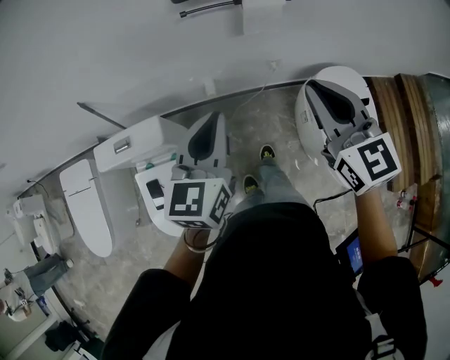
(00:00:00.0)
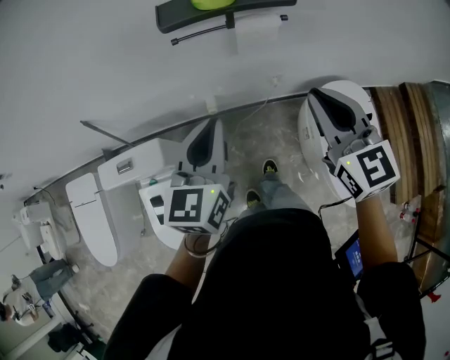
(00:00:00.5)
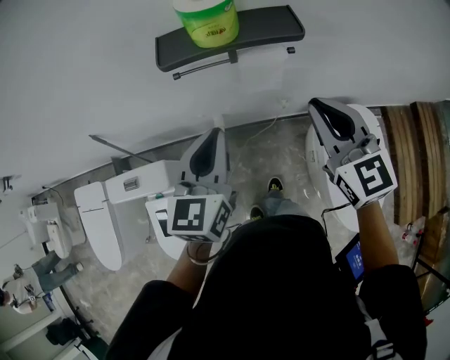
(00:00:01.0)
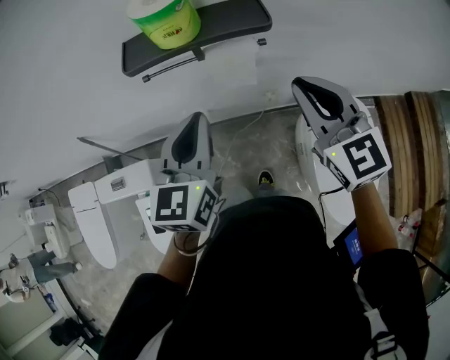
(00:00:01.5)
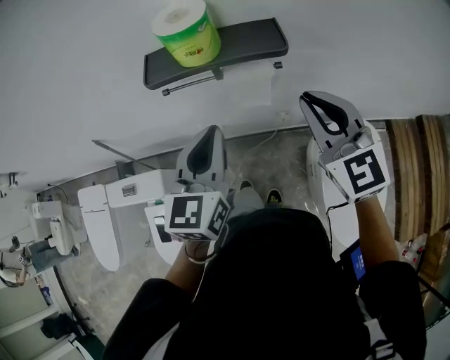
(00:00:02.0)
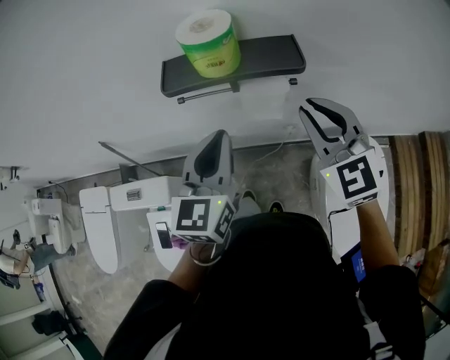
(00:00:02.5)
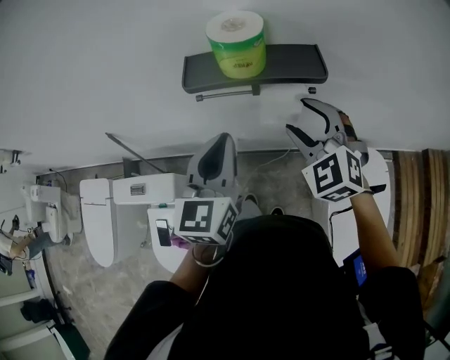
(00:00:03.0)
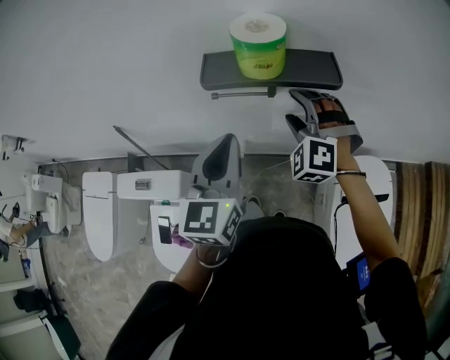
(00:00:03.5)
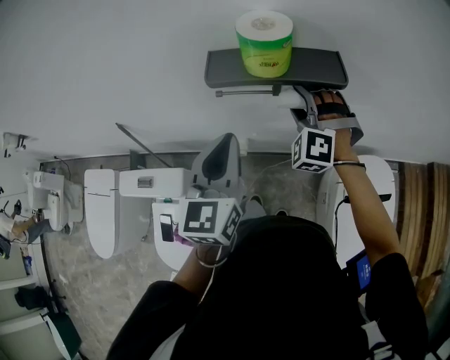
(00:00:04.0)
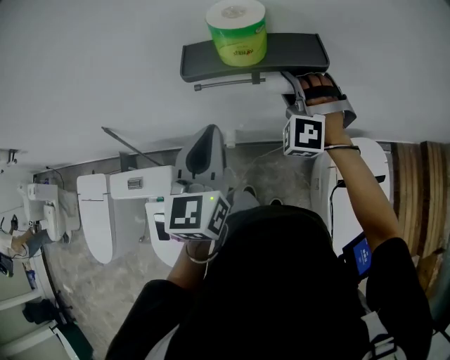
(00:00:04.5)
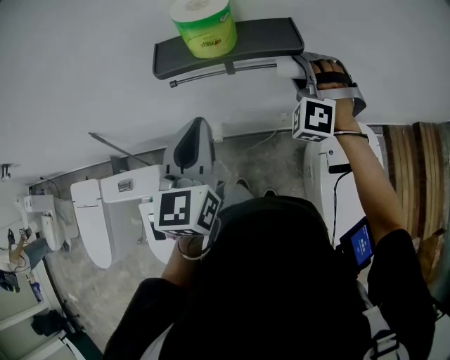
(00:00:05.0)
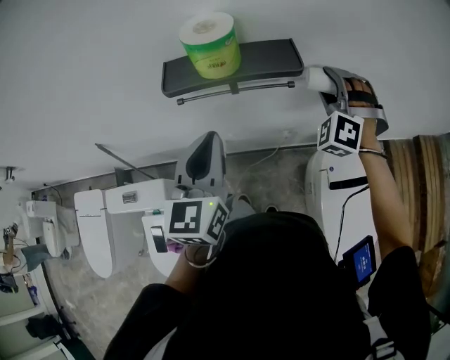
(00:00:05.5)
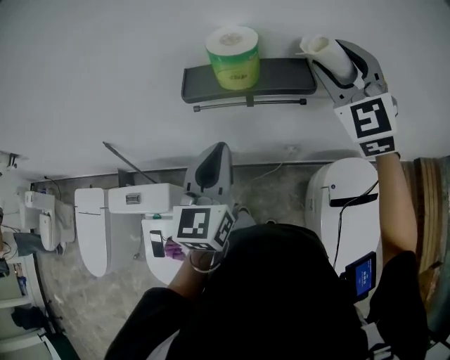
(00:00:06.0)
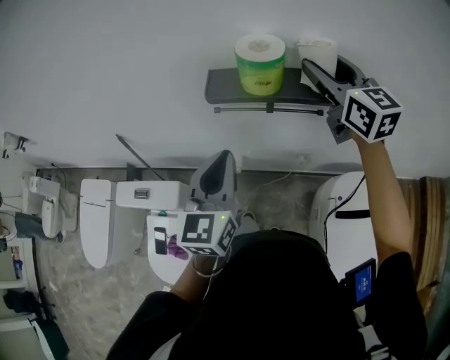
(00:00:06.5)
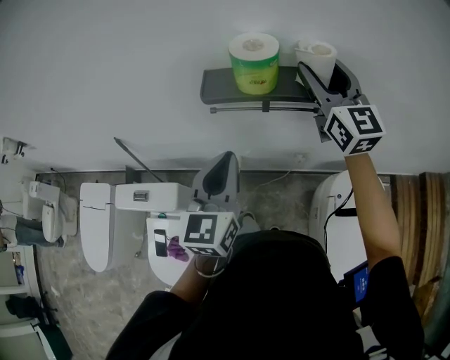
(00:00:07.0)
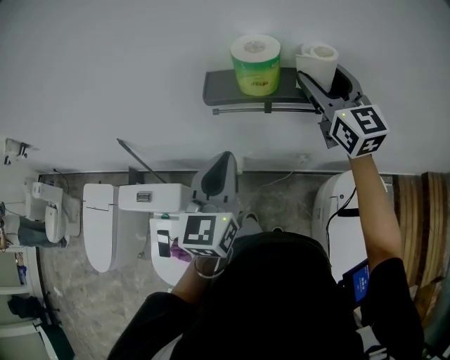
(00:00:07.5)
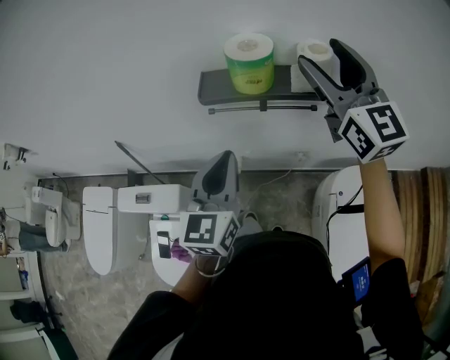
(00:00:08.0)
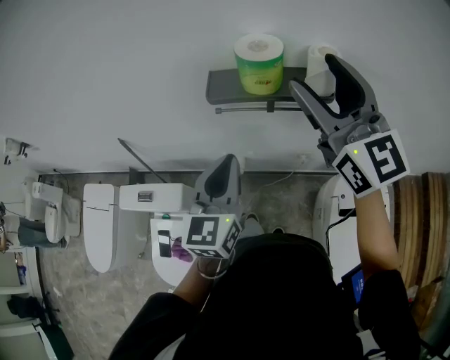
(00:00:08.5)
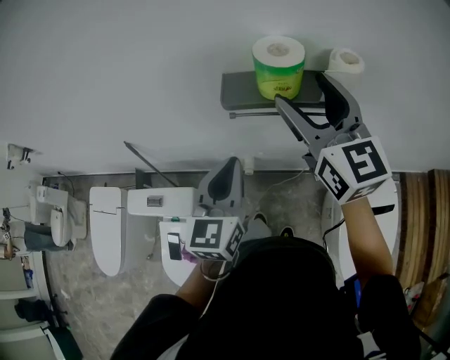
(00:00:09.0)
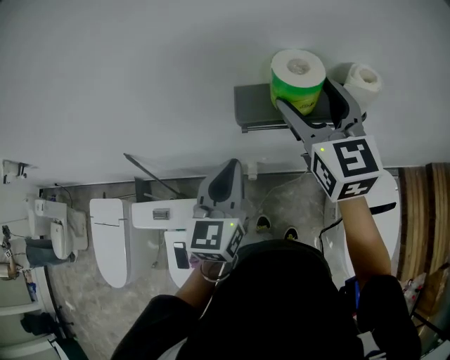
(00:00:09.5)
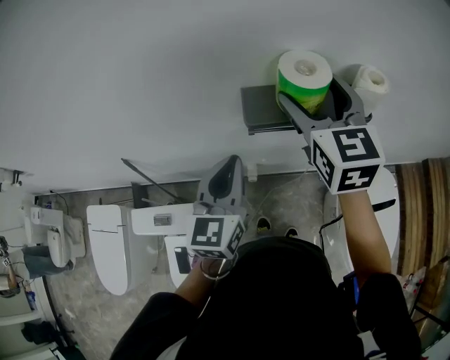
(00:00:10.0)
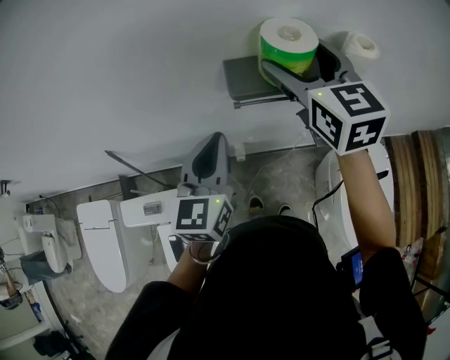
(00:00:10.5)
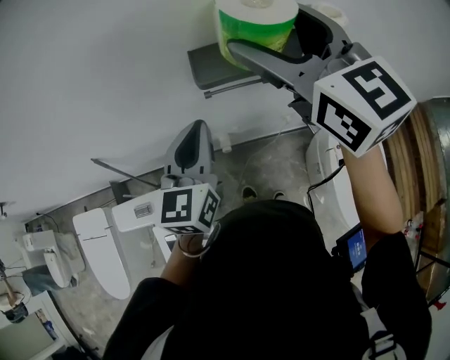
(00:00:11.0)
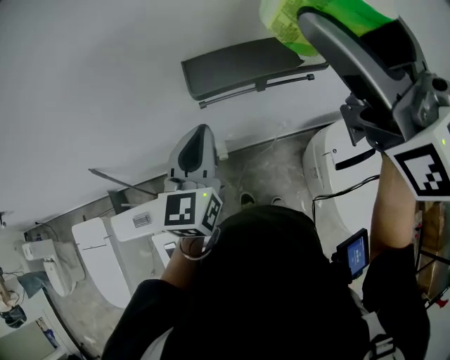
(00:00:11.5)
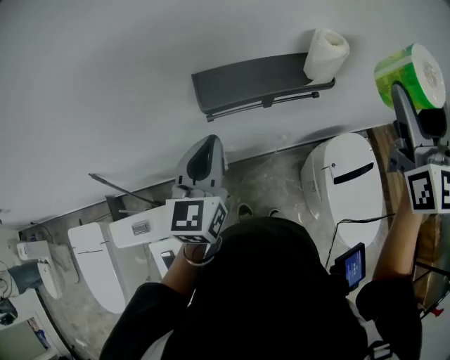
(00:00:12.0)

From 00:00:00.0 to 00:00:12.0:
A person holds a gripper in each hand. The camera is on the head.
From 00:00:00.0 to 00:00:02.0: Both grippers move forward and to the right, approximately 20 cm.
From 00:00:02.0 to 00:00:04.0: The right gripper shifts approximately 20 cm forward, to the left and downward, rolls counterclockwise, seen from behind, by approximately 60 degrees, and opens its fingers. The left gripper goes approximately 5 cm to the left.
From 00:00:04.0 to 00:00:06.0: The right gripper is displaced upward and to the right by approximately 20 cm, and rotates roughly 40 degrees.
From 00:00:06.0 to 00:00:08.0: The right gripper ends up roughly 5 cm from where it was, and swivels some 40 degrees.
From 00:00:08.0 to 00:00:10.0: The left gripper travels to the left and forward by roughly 10 cm; the right gripper heads to the left and downward, covering some 15 cm, and swivels approximately 30 degrees.
From 00:00:10.0 to 00:00:12.0: The right gripper goes about 25 cm to the right, backward and upward, and changes its angle by about 30 degrees.

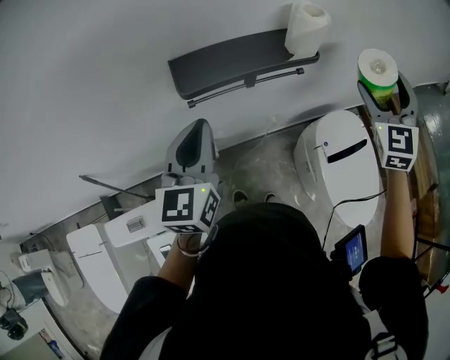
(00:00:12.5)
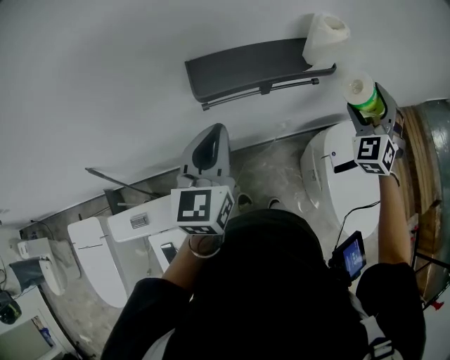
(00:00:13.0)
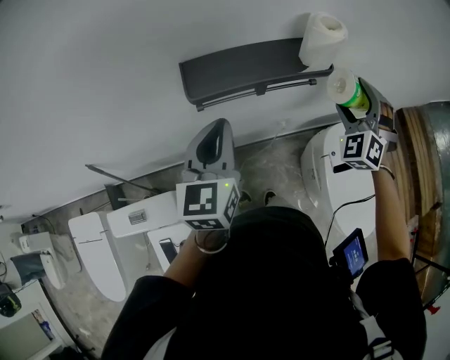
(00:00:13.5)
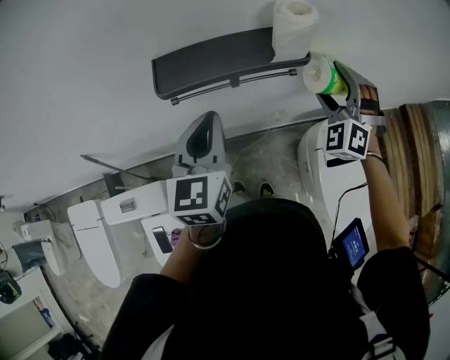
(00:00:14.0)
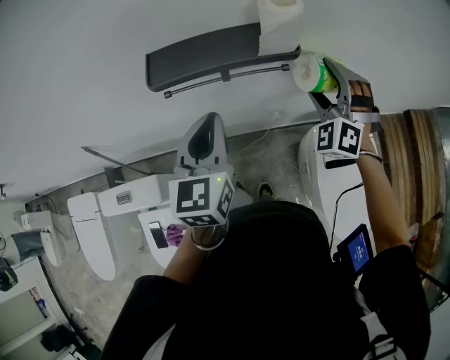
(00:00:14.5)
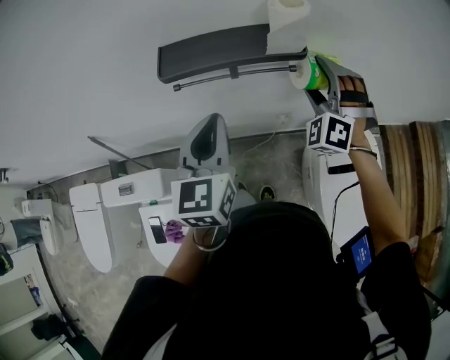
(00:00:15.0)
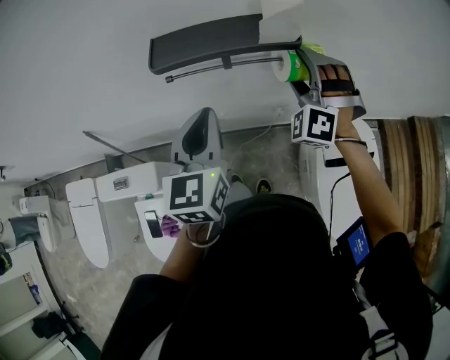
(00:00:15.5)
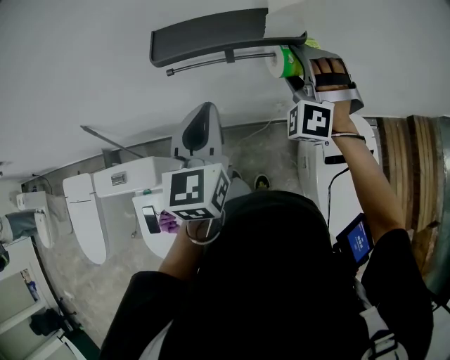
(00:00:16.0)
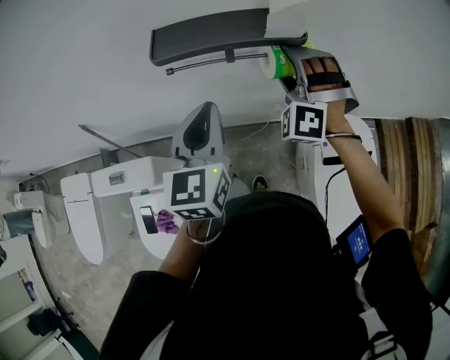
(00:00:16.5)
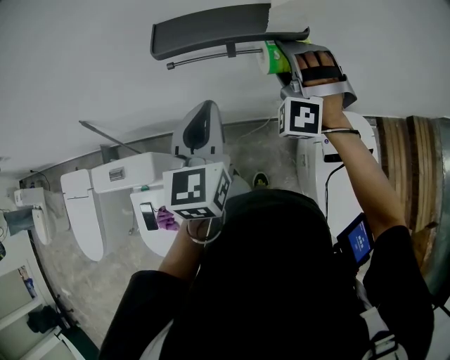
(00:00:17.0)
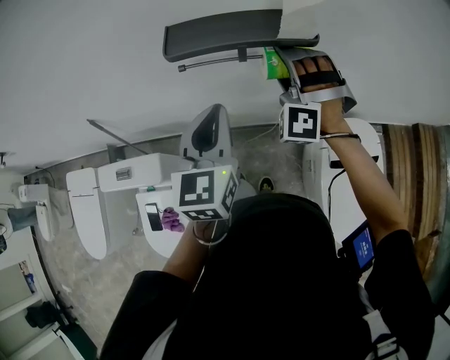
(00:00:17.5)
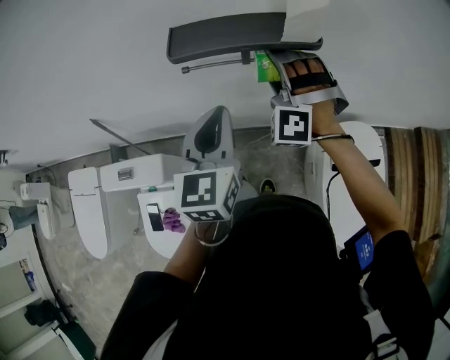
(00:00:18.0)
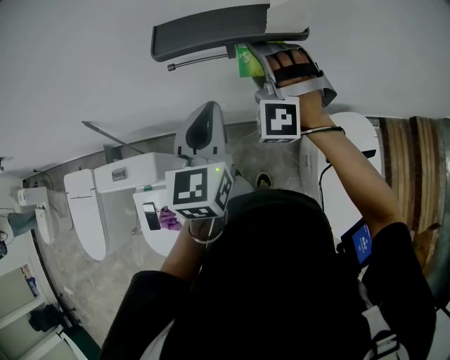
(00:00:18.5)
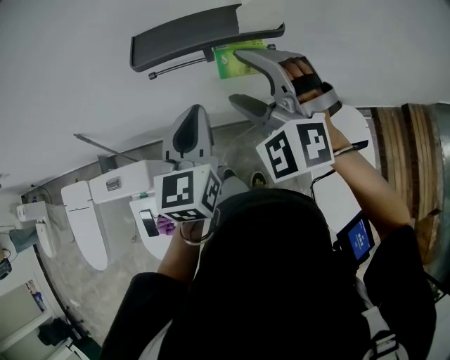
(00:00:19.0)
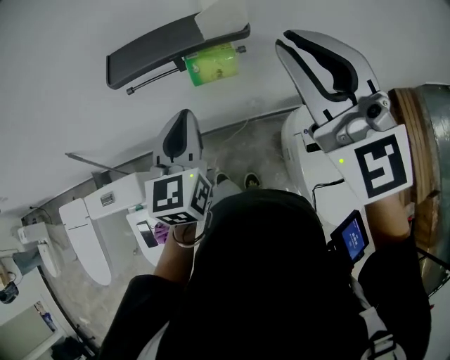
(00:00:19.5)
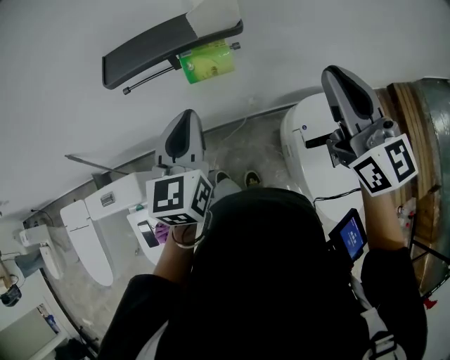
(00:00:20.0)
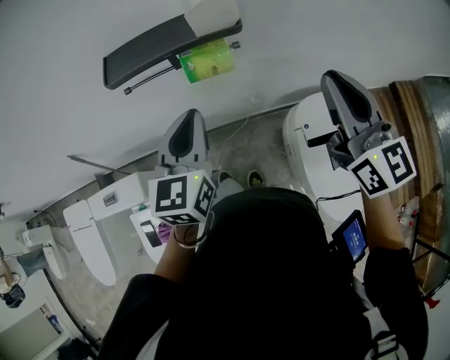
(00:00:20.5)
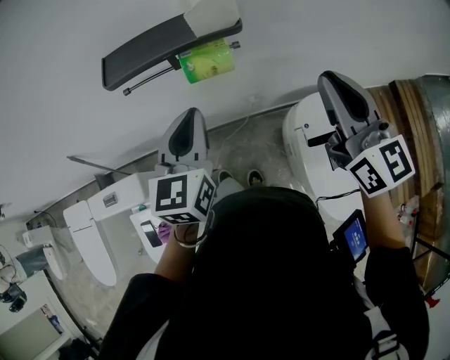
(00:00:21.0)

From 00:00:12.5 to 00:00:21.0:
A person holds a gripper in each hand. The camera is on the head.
From 00:00:12.5 to 00:00:14.5: The right gripper is displaced downward and to the left by roughly 15 cm, and changes its angle by about 40 degrees. Meanwhile the left gripper goes approximately 10 cm to the right.
From 00:00:14.5 to 00:00:16.5: The right gripper is displaced to the left by some 10 cm.
From 00:00:16.5 to 00:00:19.0: The right gripper is displaced backward, upward and to the left by some 15 cm, and rotates roughly 30 degrees.
From 00:00:19.0 to 00:00:21.0: The right gripper goes approximately 20 cm to the right, rolls clockwise, seen from behind, by some 60 degrees, and closes up, while the left gripper shifts about 5 cm to the right.

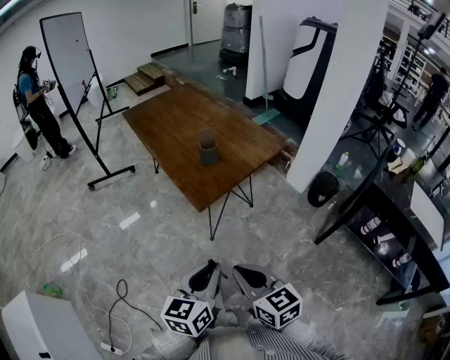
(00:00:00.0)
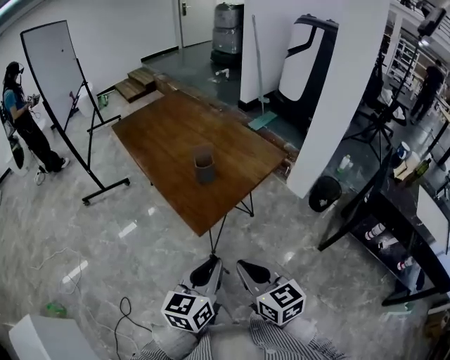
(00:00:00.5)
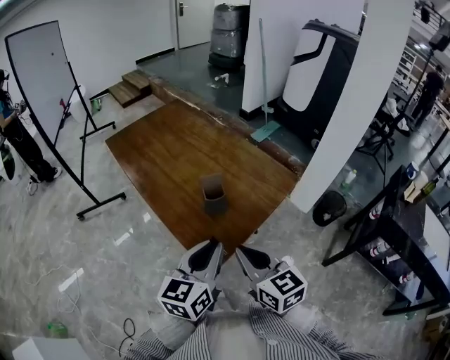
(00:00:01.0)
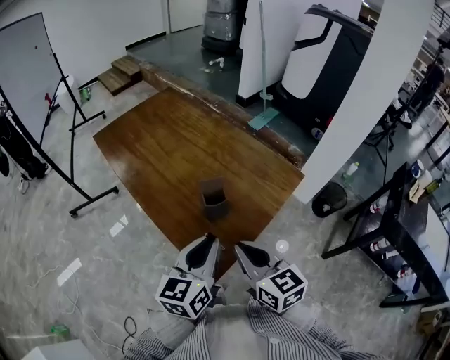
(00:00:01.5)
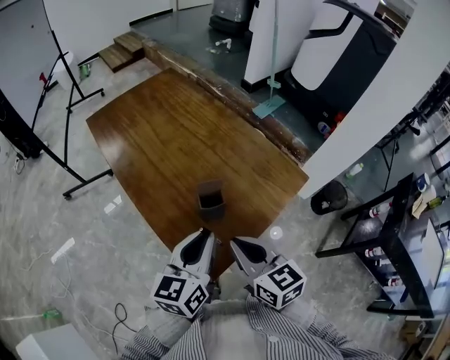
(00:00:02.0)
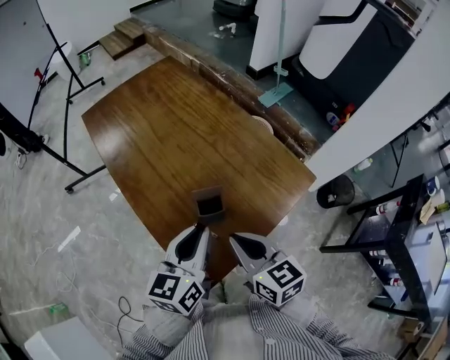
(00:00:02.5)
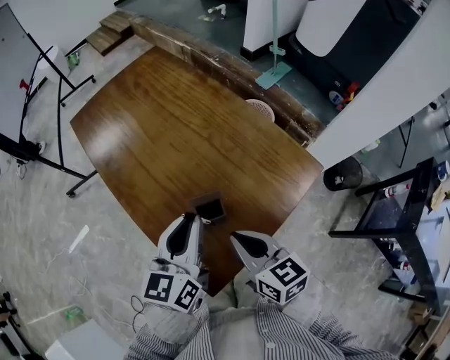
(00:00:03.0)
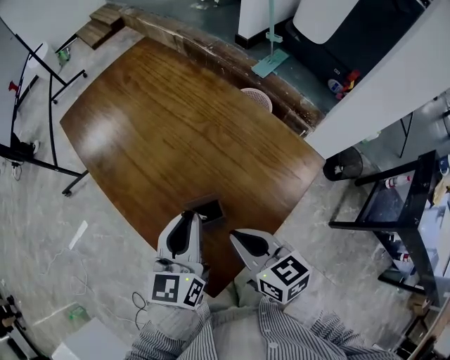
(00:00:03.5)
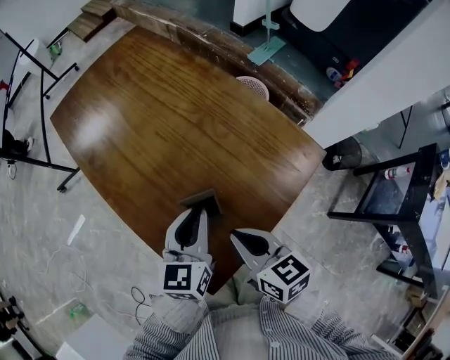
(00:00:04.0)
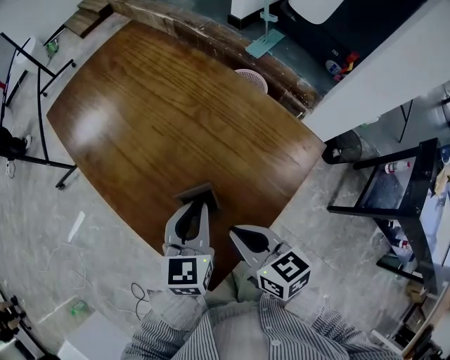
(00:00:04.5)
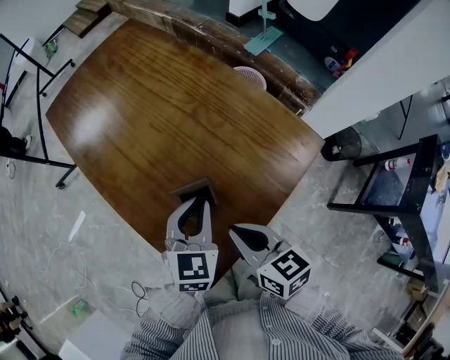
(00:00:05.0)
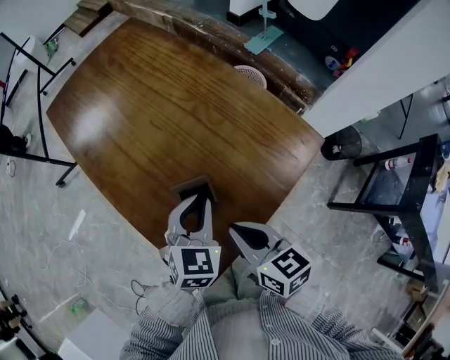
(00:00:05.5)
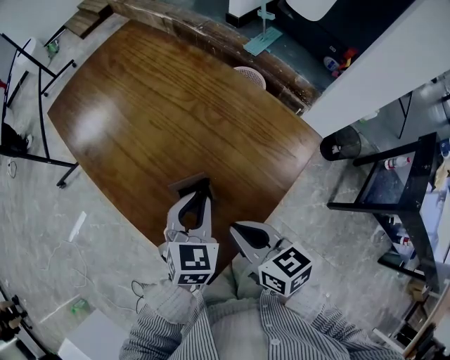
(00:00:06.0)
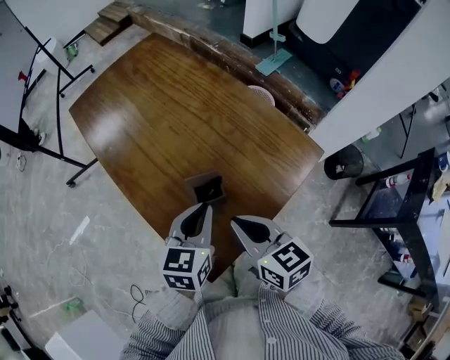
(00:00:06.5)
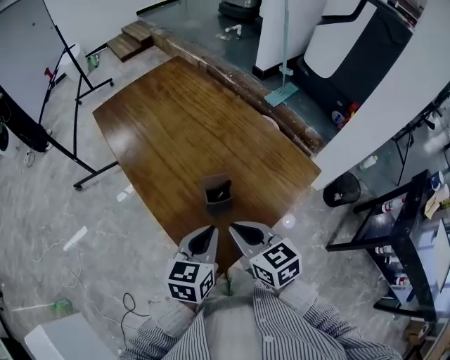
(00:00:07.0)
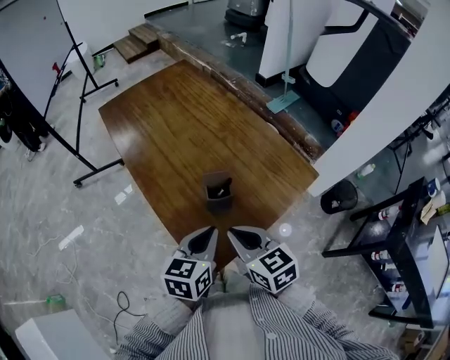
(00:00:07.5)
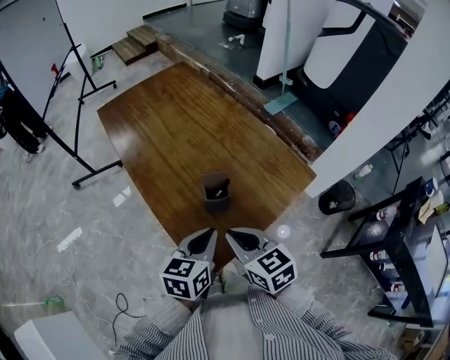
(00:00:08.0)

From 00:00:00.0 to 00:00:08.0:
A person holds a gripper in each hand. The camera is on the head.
From 00:00:00.0 to 00:00:02.0: Both grippers are carried forward, about 40 cm.
From 00:00:02.0 to 00:00:04.0: The right gripper shifts about 10 cm downward and forward, while the left gripper heads forward and downward, covering some 15 cm.
From 00:00:04.0 to 00:00:06.0: The left gripper turns by roughly 30 degrees.
From 00:00:06.0 to 00:00:08.0: The left gripper travels backward and upward by some 15 cm, and changes its angle by about 30 degrees. Meanwhile the right gripper is displaced to the left by approximately 5 cm, and changes its angle by roughly 20 degrees.
